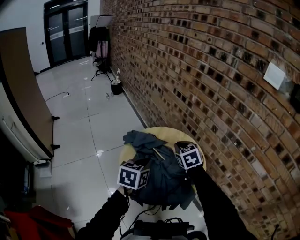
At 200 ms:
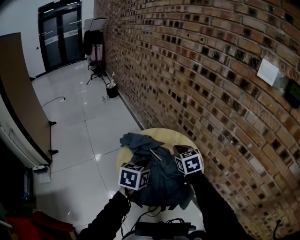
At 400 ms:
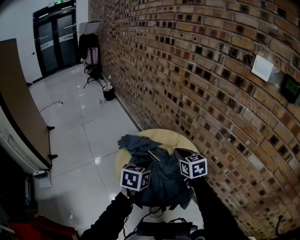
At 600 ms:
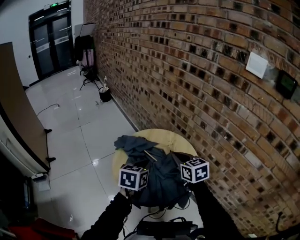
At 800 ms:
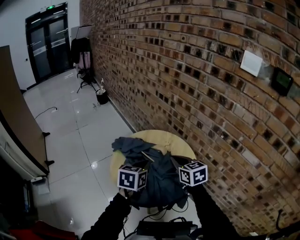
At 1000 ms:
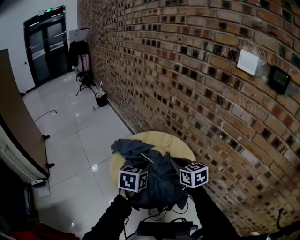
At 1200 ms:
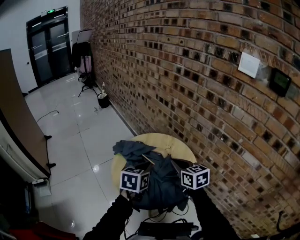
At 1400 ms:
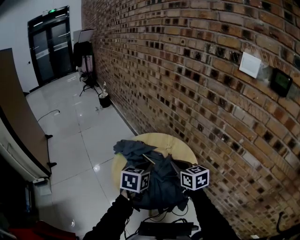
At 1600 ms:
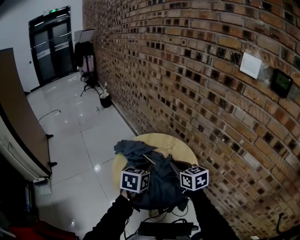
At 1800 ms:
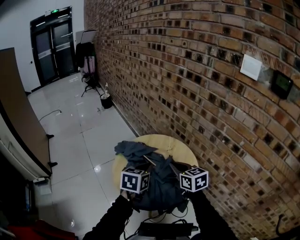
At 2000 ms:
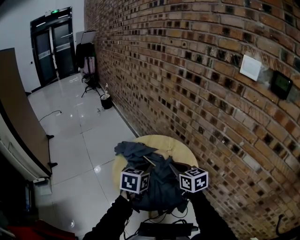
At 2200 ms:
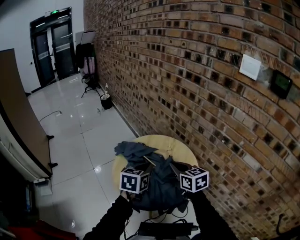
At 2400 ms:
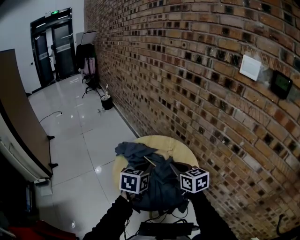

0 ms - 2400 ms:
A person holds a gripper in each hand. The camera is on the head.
0 ms - 1200 ms: The left gripper is displaced to the right by about 10 cm. Meanwhile the right gripper travels backward and to the right by roughly 10 cm, and changes its angle by approximately 30 degrees.
1200 ms - 2400 ms: The grippers make only small movements.

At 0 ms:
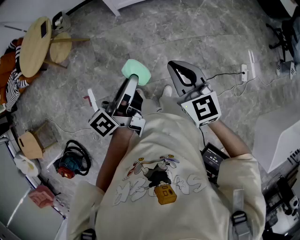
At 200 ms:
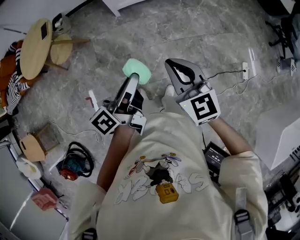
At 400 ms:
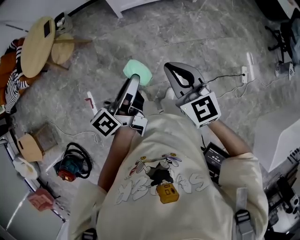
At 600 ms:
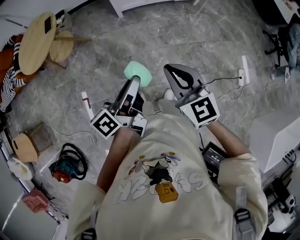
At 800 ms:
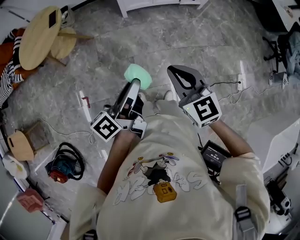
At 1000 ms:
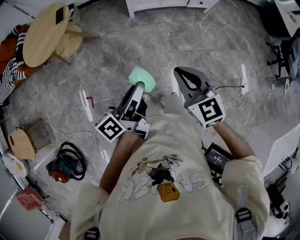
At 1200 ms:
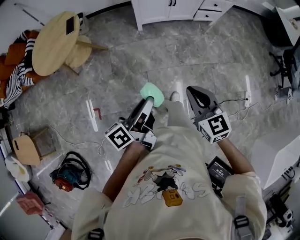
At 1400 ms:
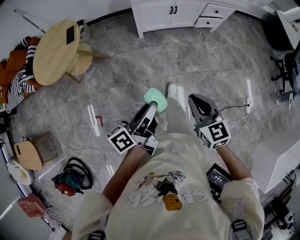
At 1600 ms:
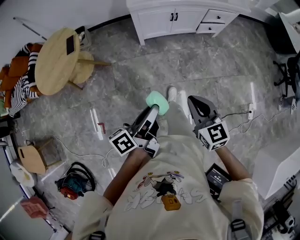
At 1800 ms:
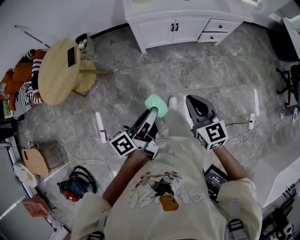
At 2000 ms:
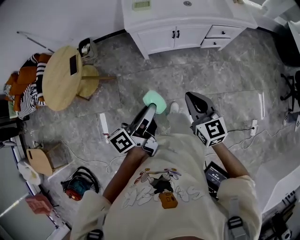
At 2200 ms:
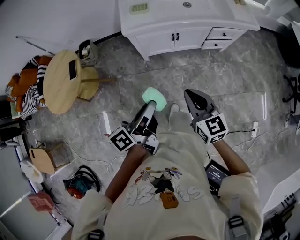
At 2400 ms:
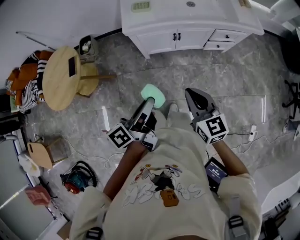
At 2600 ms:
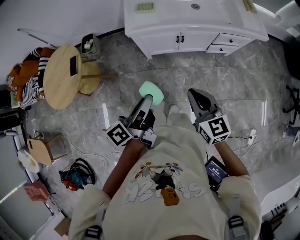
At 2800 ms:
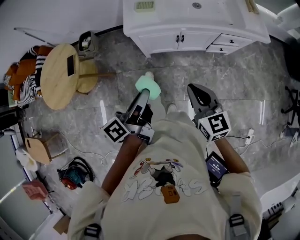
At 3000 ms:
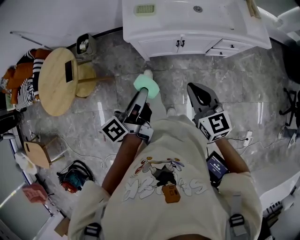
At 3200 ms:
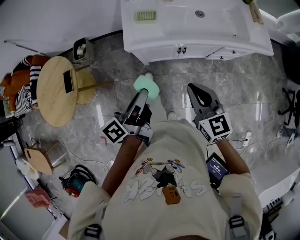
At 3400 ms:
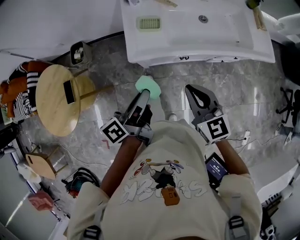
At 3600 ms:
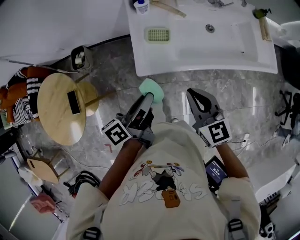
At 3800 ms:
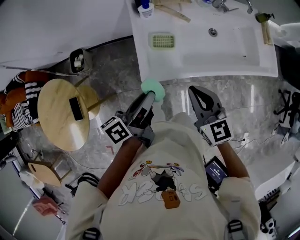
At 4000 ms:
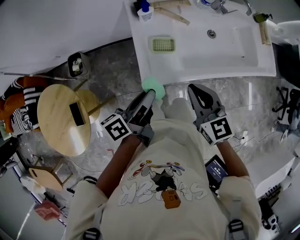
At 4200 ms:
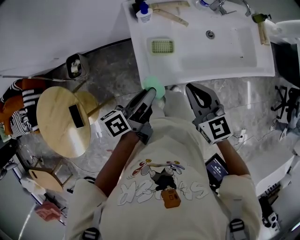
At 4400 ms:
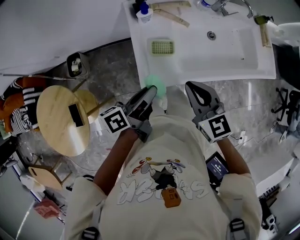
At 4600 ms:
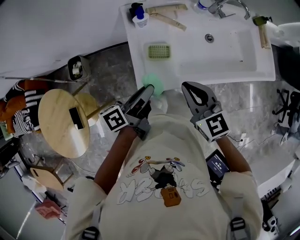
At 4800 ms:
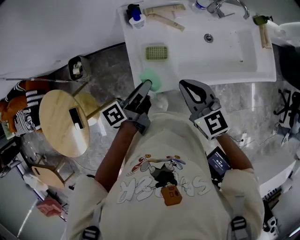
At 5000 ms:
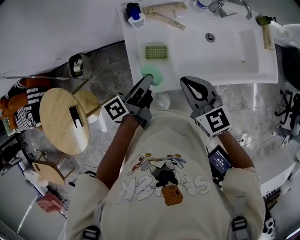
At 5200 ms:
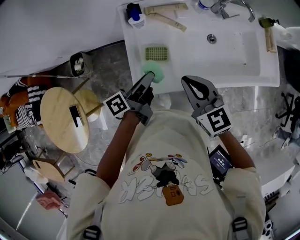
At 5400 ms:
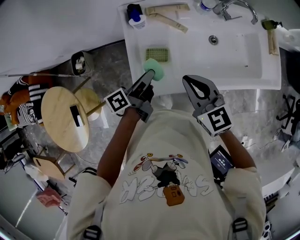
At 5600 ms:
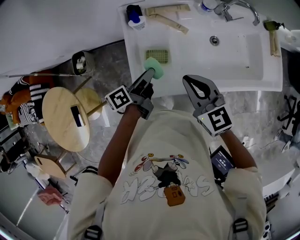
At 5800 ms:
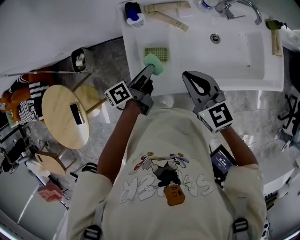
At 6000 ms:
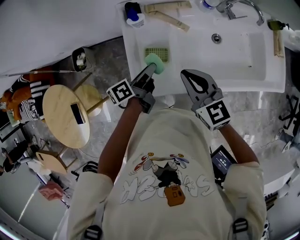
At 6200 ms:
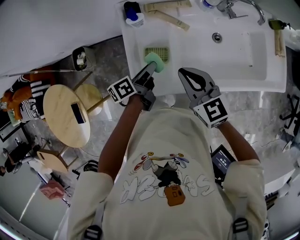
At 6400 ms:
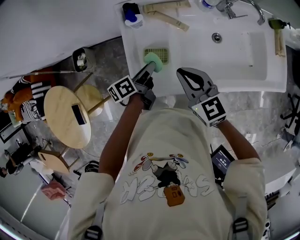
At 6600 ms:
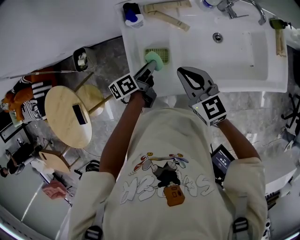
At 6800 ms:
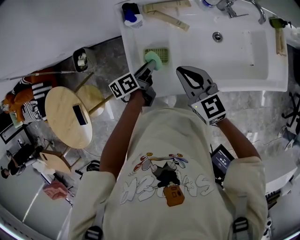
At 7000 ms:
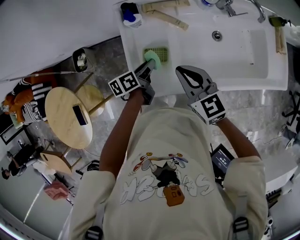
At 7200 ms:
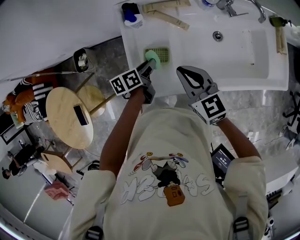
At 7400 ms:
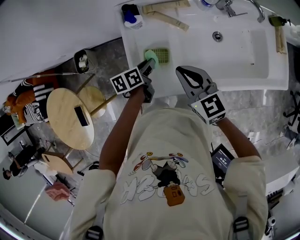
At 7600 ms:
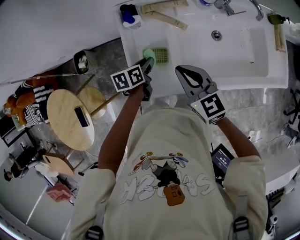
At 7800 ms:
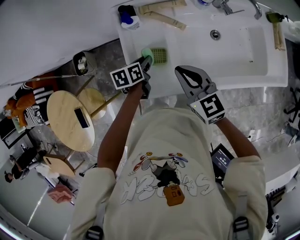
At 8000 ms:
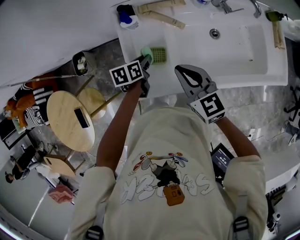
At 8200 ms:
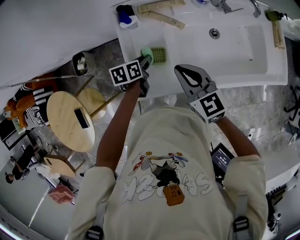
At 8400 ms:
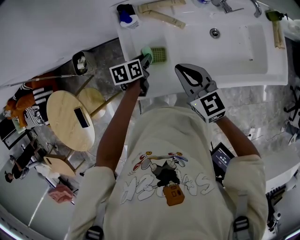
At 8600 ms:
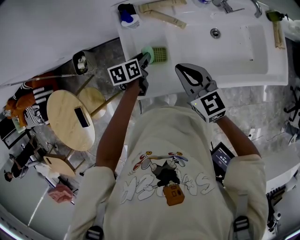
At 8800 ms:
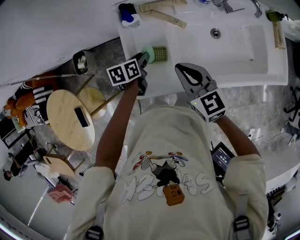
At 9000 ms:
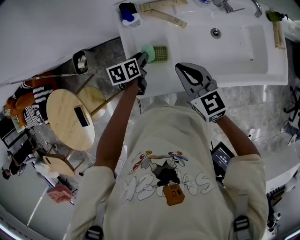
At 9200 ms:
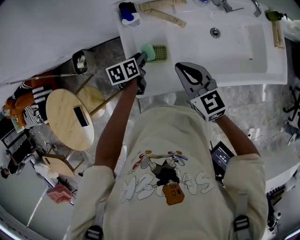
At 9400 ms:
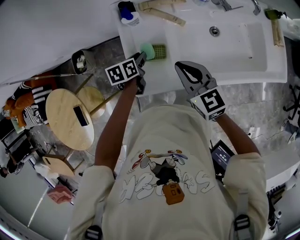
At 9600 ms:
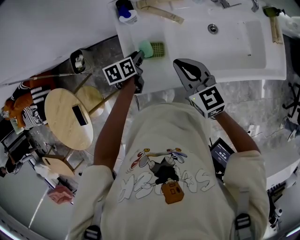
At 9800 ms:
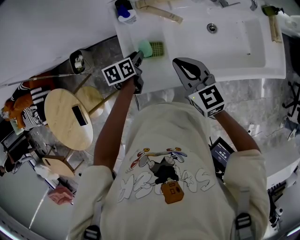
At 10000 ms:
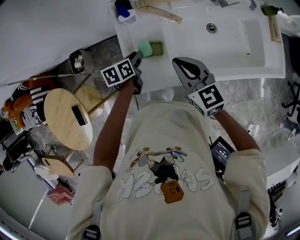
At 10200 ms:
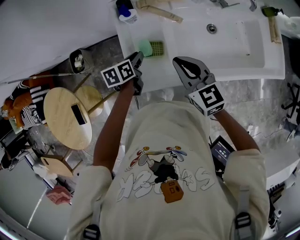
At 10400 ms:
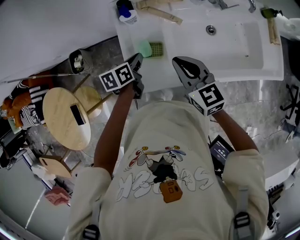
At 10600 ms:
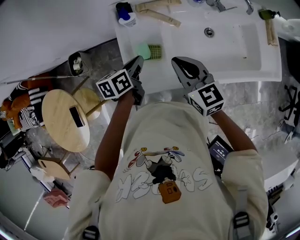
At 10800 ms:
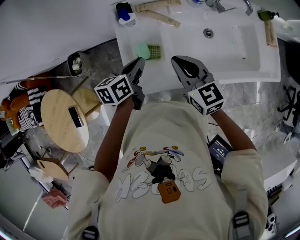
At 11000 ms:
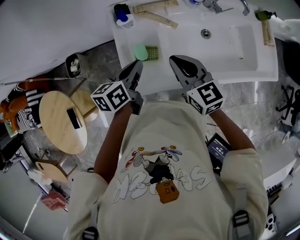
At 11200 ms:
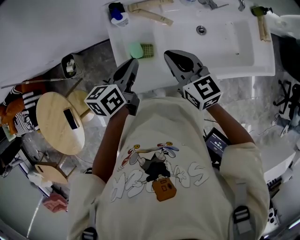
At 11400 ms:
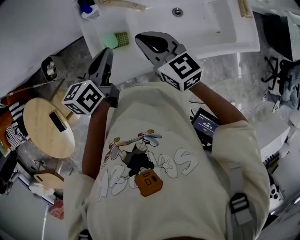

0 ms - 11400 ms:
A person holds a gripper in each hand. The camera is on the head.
0 ms - 1400 ms: Both grippers move to the left and forward, roughly 15 cm.
1400 ms - 2800 ms: The two grippers go roughly 35 cm forward.
2800 ms - 4200 ms: The right gripper goes roughly 35 cm forward and to the left. Meanwhile the left gripper heads forward, covering approximately 35 cm.
4200 ms - 5600 ms: The right gripper heads forward, covering roughly 10 cm; the left gripper heads forward, downward and to the right, covering approximately 15 cm.
5600 ms - 7200 ms: The right gripper moves some 5 cm. The left gripper travels downward by roughly 10 cm, and turns by some 30 degrees.
8600 ms - 10000 ms: The grippers move only a little.
10000 ms - 11400 ms: The left gripper goes approximately 20 cm upward, turns by approximately 20 degrees, and closes.

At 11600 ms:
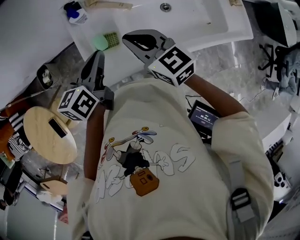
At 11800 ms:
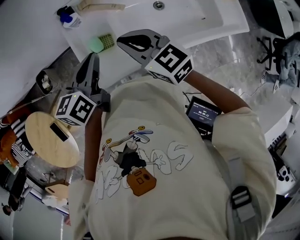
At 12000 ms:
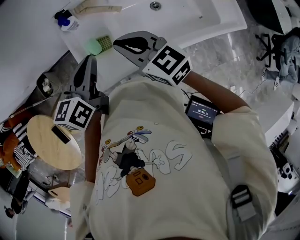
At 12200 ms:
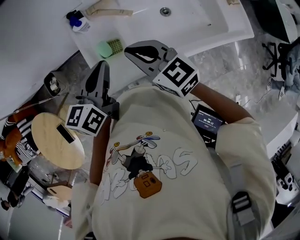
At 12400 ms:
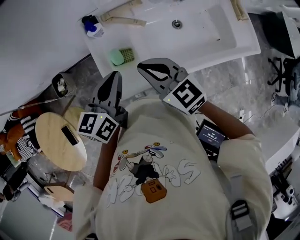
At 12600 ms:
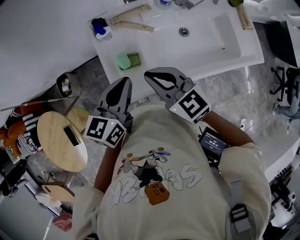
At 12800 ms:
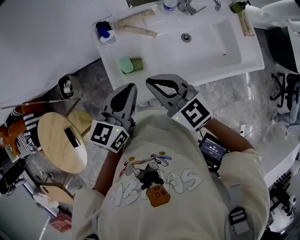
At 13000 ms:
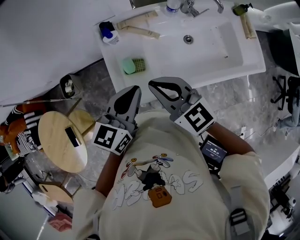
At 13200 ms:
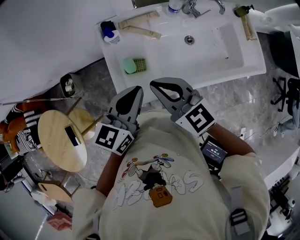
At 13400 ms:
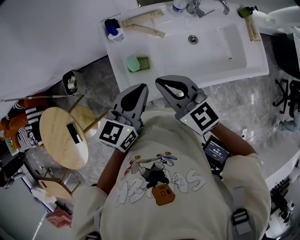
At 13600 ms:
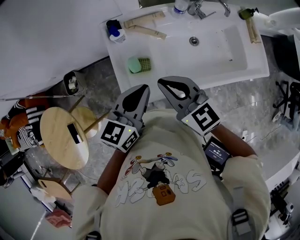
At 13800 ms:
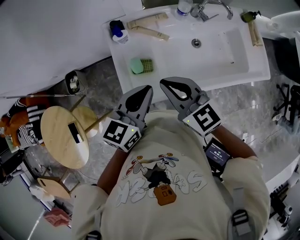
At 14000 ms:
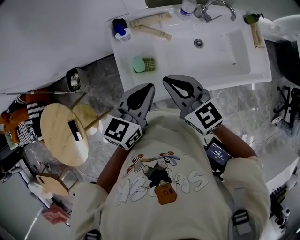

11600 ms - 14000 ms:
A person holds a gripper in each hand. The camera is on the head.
11600 ms - 12800 ms: The left gripper is displaced upward by about 5 cm, and changes its angle by approximately 20 degrees. The right gripper moves about 5 cm.
12800 ms - 14000 ms: The grippers move only a little.

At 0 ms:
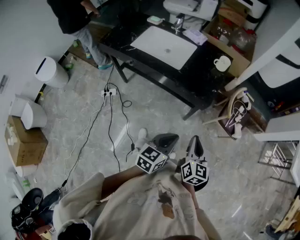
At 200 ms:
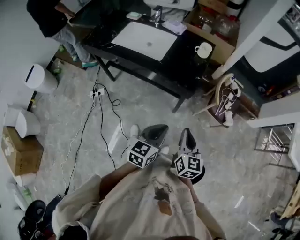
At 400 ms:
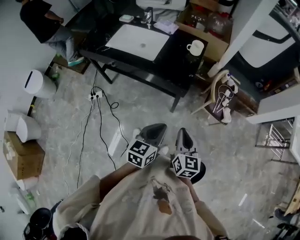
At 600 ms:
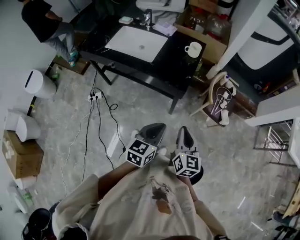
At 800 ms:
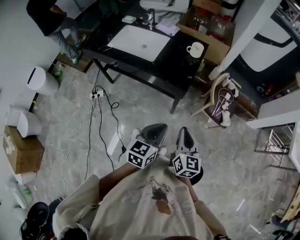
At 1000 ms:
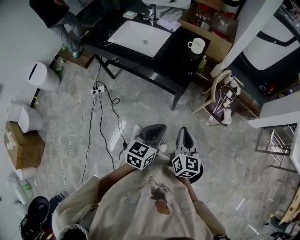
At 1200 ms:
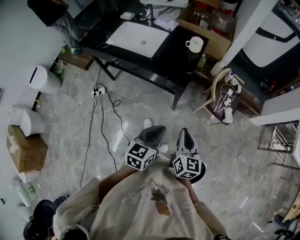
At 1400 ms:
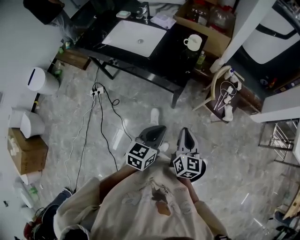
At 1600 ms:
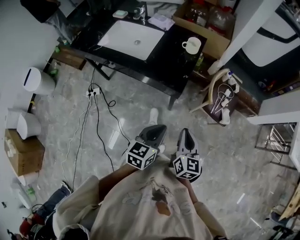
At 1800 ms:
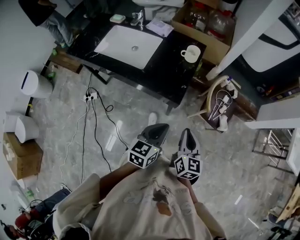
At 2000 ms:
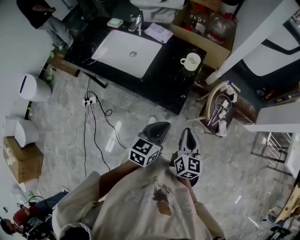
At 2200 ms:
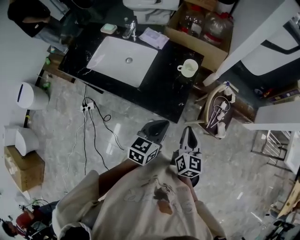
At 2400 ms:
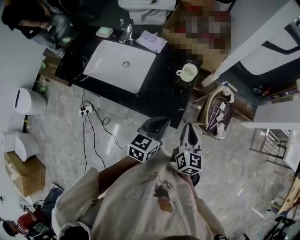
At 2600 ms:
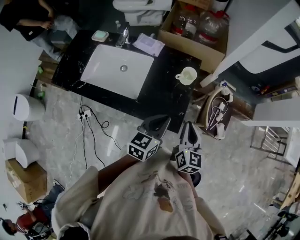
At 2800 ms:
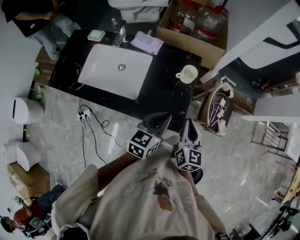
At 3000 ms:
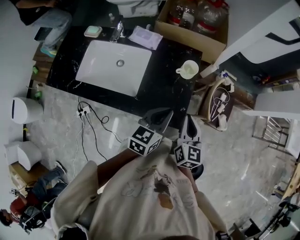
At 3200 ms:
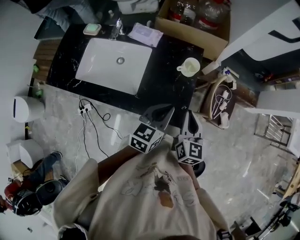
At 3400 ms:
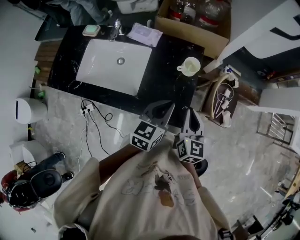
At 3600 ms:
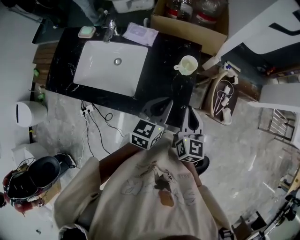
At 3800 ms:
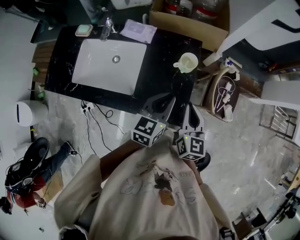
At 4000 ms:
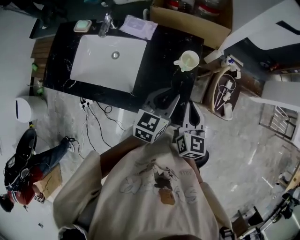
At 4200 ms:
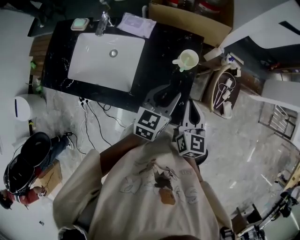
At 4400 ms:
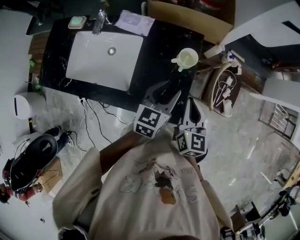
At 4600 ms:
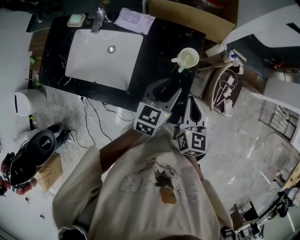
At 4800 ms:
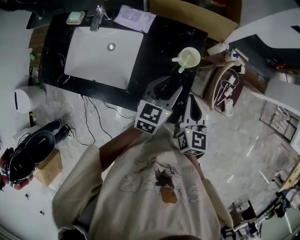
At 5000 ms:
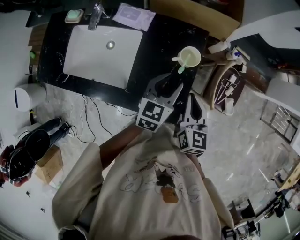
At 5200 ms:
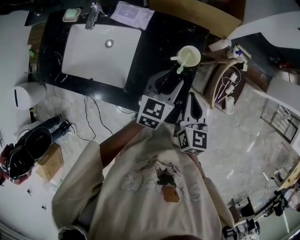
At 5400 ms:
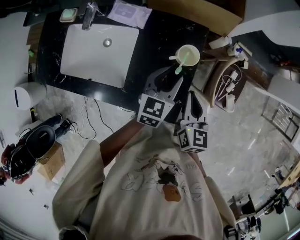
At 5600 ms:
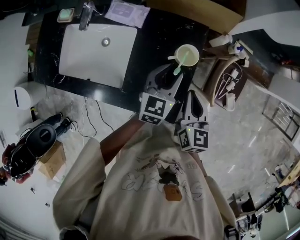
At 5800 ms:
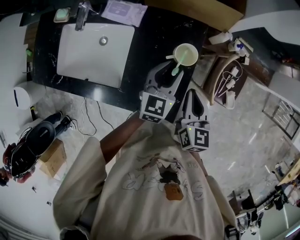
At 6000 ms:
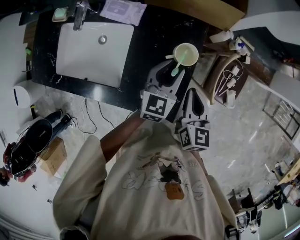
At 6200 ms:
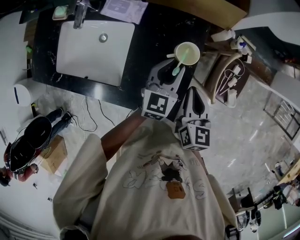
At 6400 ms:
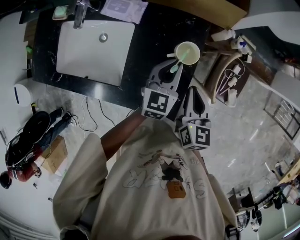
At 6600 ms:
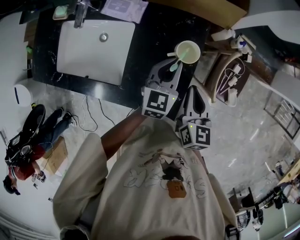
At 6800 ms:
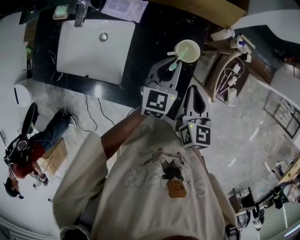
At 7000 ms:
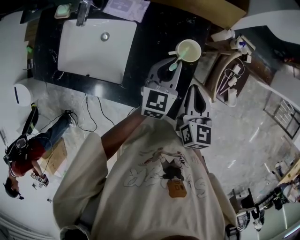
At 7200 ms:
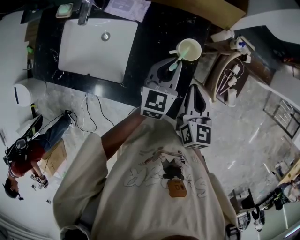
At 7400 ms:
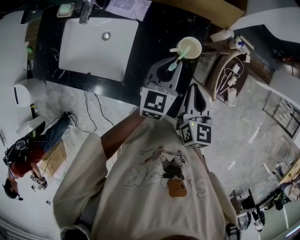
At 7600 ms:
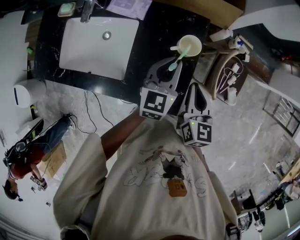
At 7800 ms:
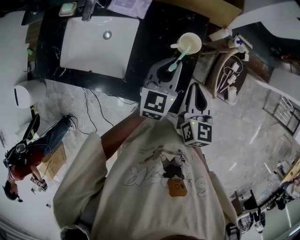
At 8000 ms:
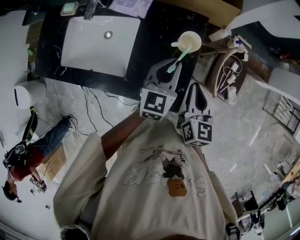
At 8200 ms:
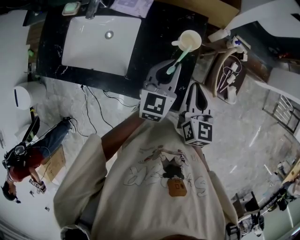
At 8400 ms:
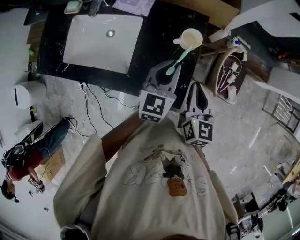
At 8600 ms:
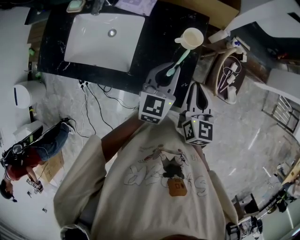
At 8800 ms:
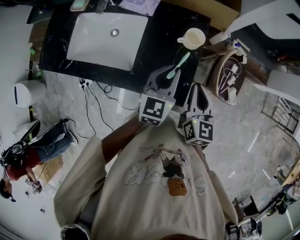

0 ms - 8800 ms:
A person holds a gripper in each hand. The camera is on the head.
0 ms - 1400 ms: Both grippers move to the right, approximately 10 cm.
1400 ms - 3000 ms: The left gripper shifts roughly 35 cm forward. Meanwhile the right gripper shifts approximately 35 cm forward and to the left.
3000 ms - 4400 ms: The left gripper heads forward and downward, covering some 15 cm, and opens its fingers; the right gripper moves forward, approximately 10 cm.
4400 ms - 5800 ms: The two grippers go roughly 10 cm forward and downward.
5800 ms - 7400 ms: The left gripper closes up.
7400 ms - 8800 ms: The grippers both shift backward by approximately 10 cm.
